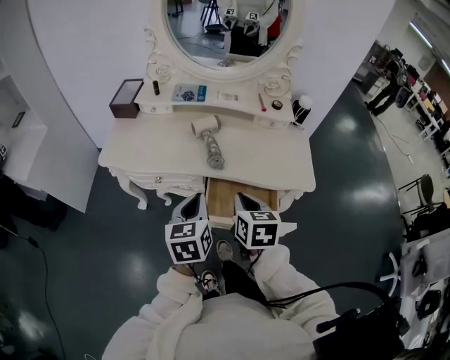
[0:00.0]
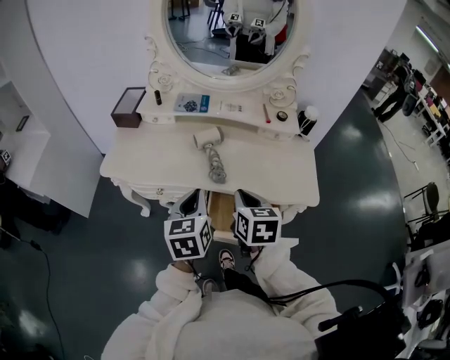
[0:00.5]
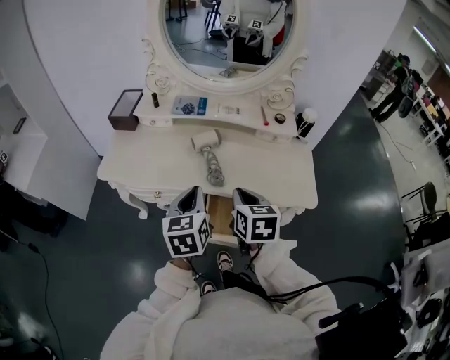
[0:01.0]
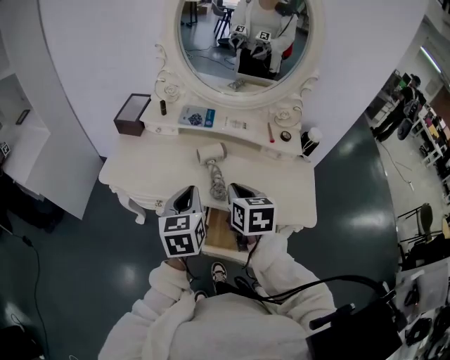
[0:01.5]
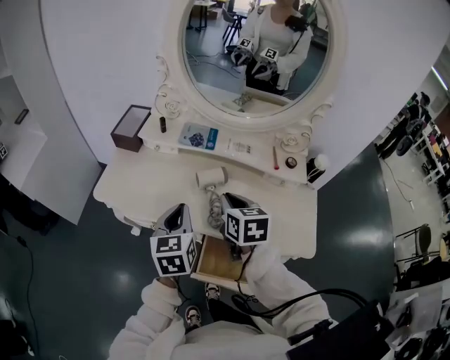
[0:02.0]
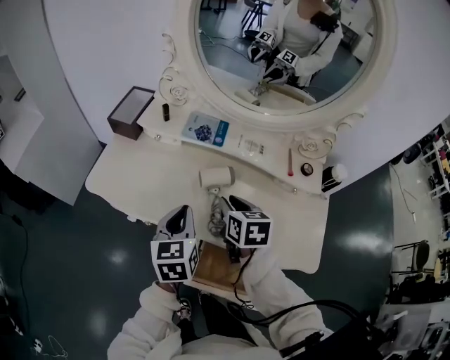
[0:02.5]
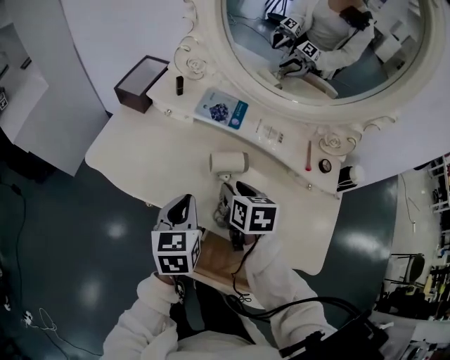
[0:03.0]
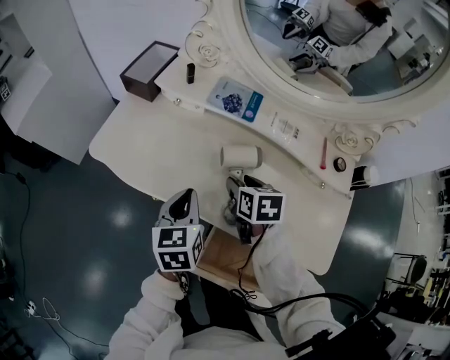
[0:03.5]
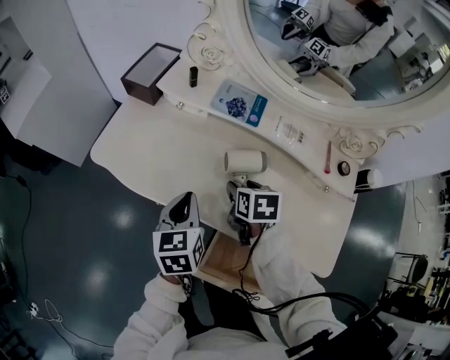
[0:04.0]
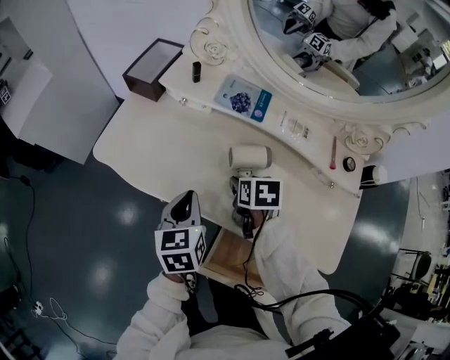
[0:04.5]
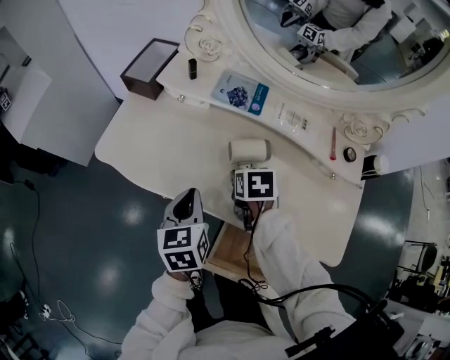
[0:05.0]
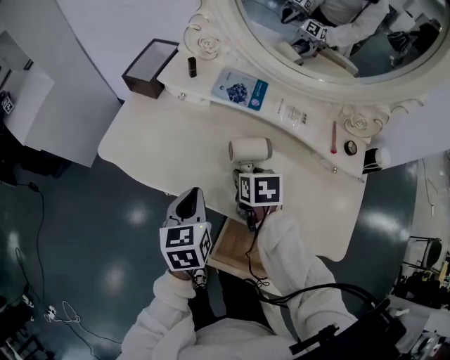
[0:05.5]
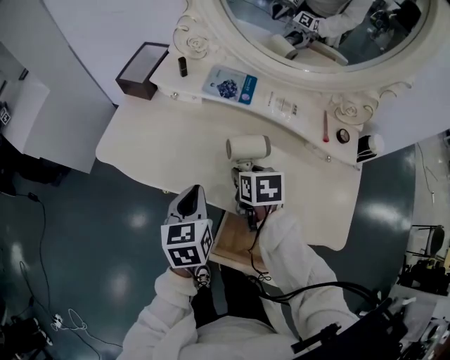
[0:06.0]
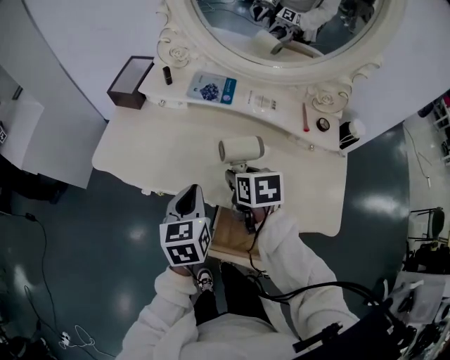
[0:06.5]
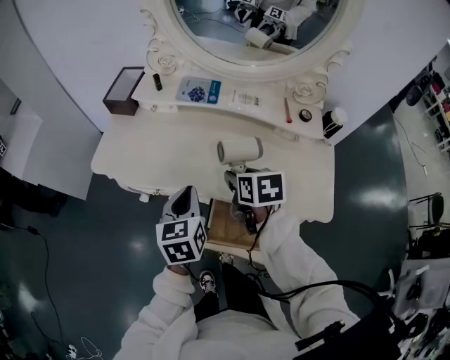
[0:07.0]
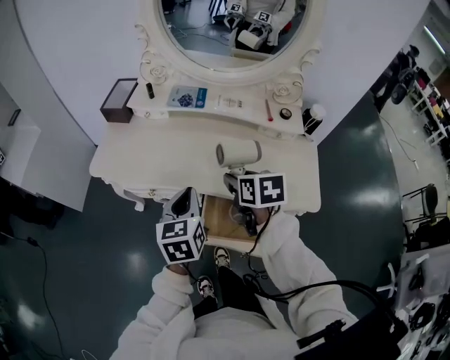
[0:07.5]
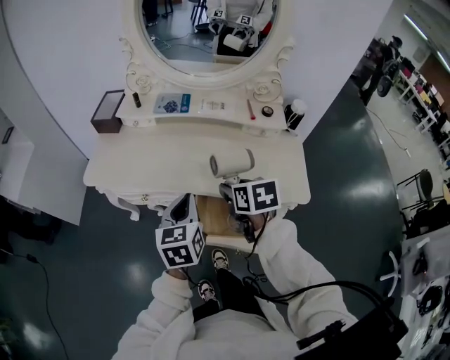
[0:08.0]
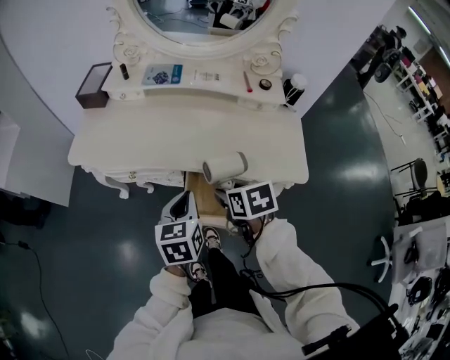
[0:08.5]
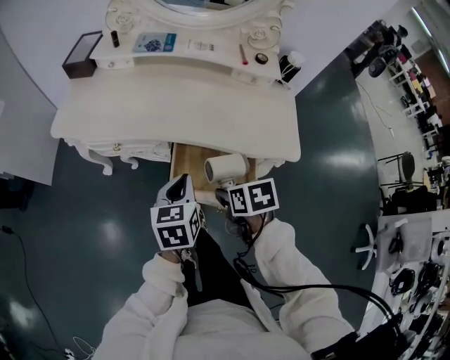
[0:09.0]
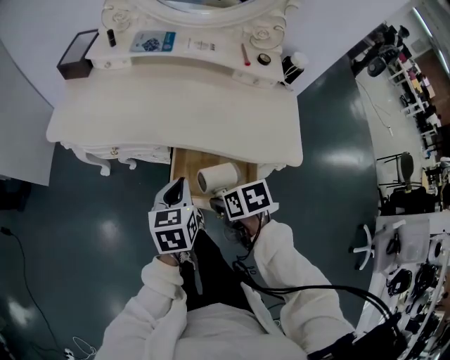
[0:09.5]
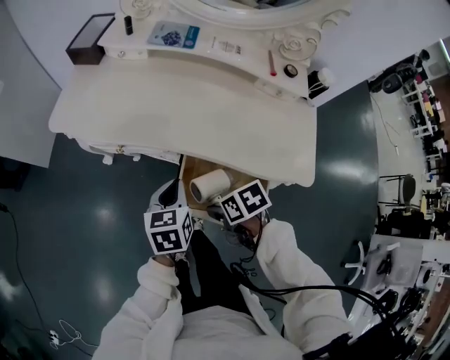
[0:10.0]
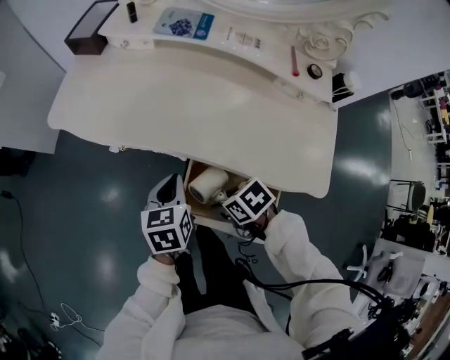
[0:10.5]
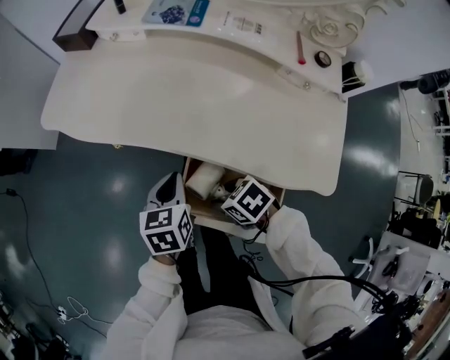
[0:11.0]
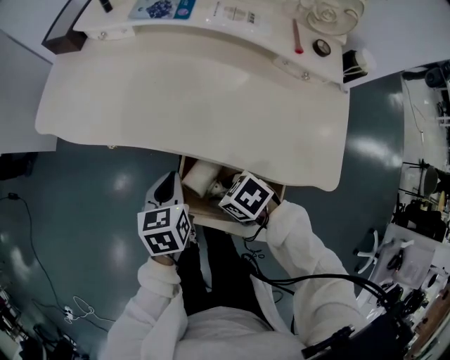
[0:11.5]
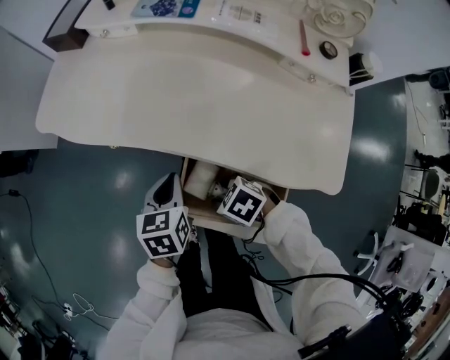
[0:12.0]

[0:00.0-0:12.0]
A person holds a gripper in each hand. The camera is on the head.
0:00.0 to 0:02.0: Both grippers travel together forward, about 20 cm.
0:02.0 to 0:04.0: The right gripper is displaced downward and forward by roughly 20 cm, turns by some 20 degrees, and opens its fingers. Meanwhile the left gripper heads downward and forward, covering some 10 cm.
0:04.0 to 0:06.0: There are only small adjustments of the grippers.
0:06.0 to 0:08.0: The right gripper is displaced backward and upward by approximately 20 cm, while the left gripper moves backward, upward and to the right, approximately 15 cm.
0:08.0 to 0:10.0: The grippers both shift downward by about 15 cm. The right gripper swivels roughly 40 degrees.
0:10.0 to 0:12.0: The grippers both shift downward by about 5 cm. The right gripper swivels some 40 degrees.

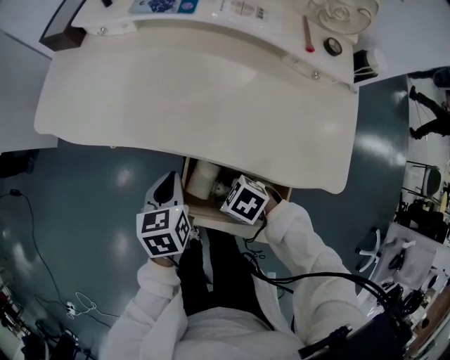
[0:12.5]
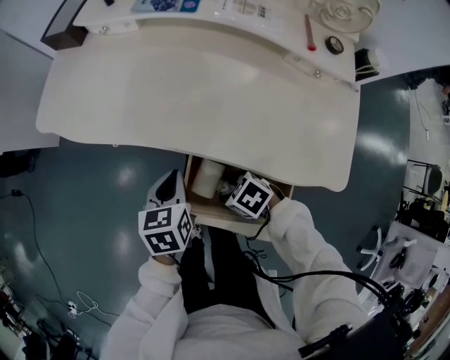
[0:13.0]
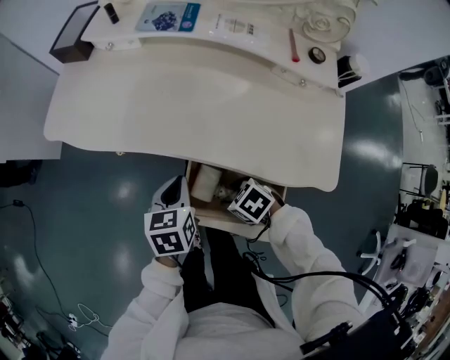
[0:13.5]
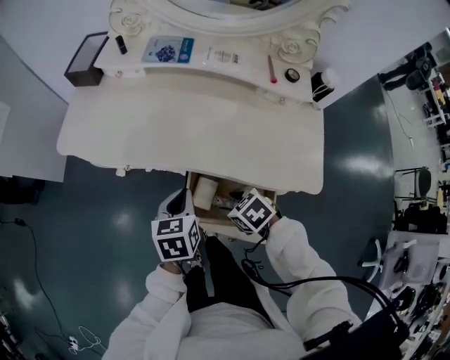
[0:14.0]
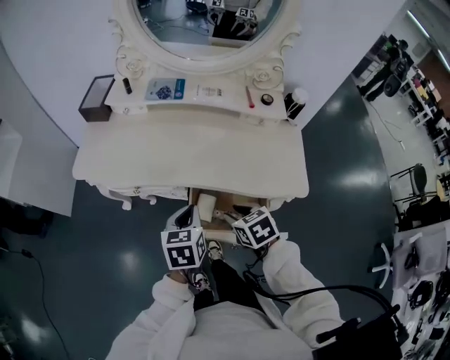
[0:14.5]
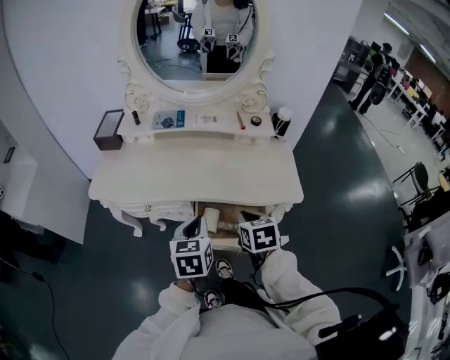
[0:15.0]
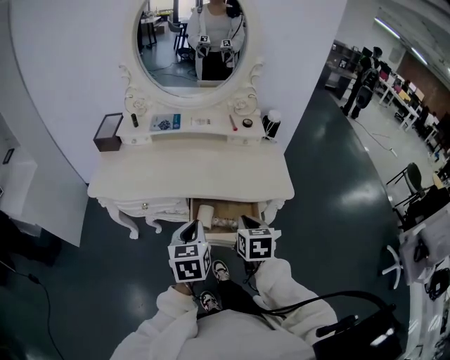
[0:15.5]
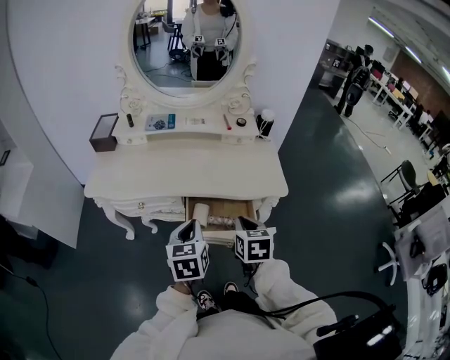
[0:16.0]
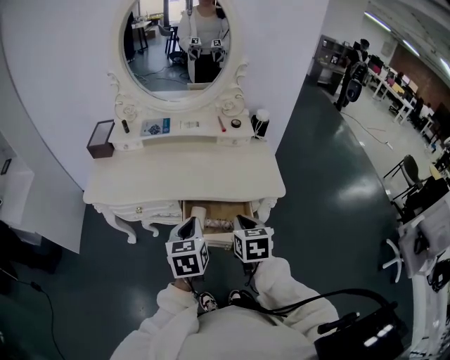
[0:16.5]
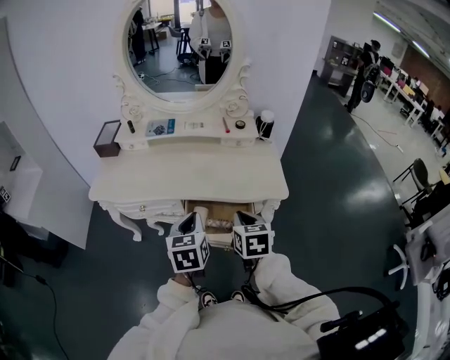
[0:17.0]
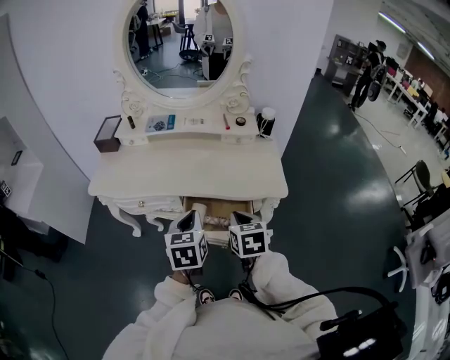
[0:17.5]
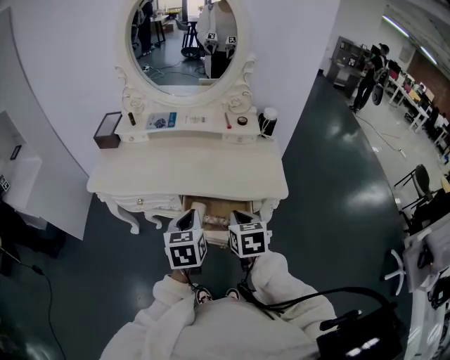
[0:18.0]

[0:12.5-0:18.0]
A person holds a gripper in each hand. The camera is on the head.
0:12.5 to 0:14.5: Both grippers travel together upward, about 15 cm. The right gripper turns by approximately 50 degrees.
0:14.5 to 0:16.0: The left gripper goes roughly 10 cm backward and upward, while the right gripper moves upward and backward, about 15 cm, turns by roughly 40 degrees, and closes its fingers.
0:16.0 to 0:18.0: The grippers move only a little.

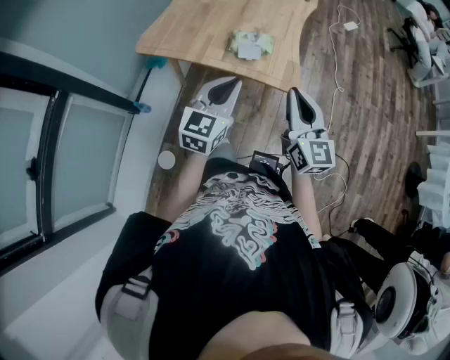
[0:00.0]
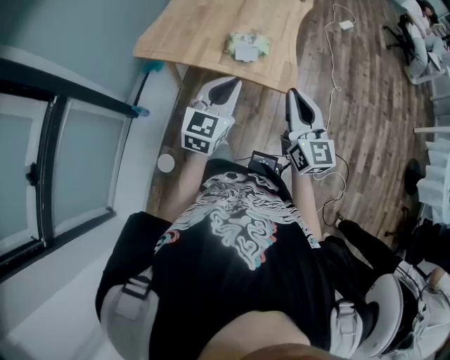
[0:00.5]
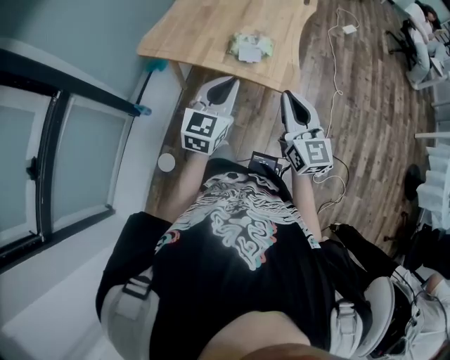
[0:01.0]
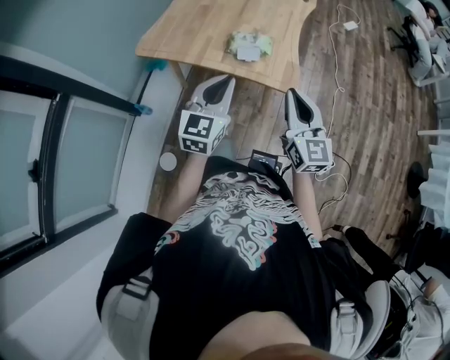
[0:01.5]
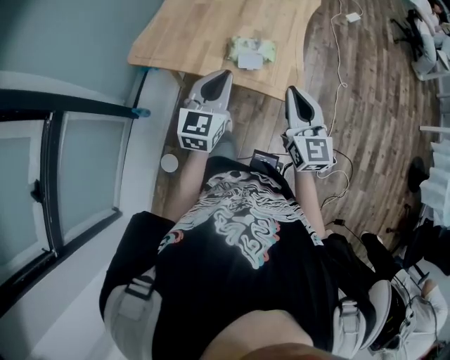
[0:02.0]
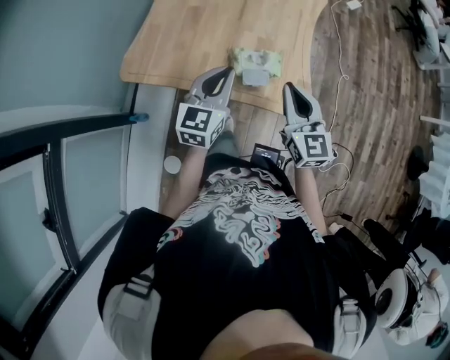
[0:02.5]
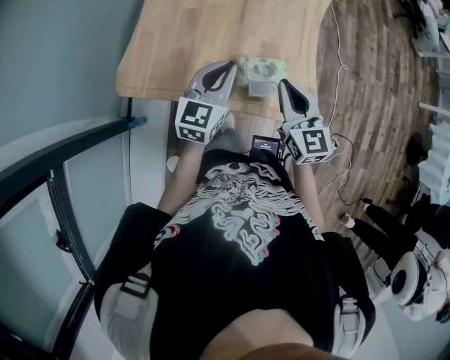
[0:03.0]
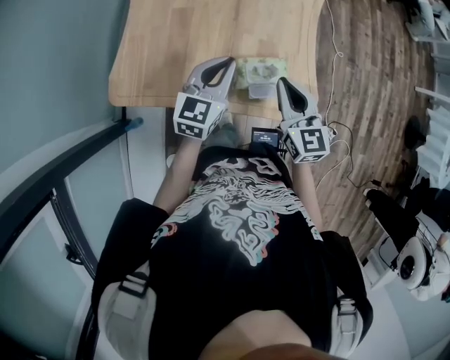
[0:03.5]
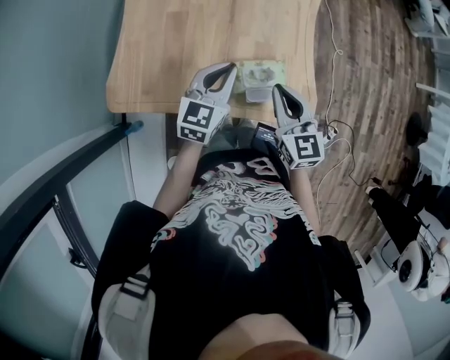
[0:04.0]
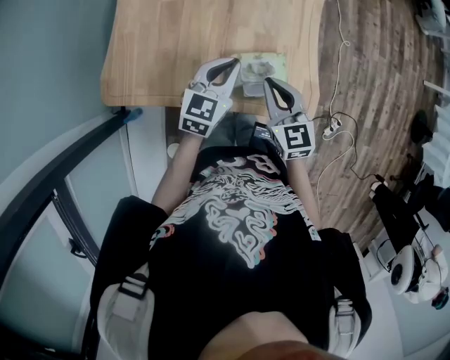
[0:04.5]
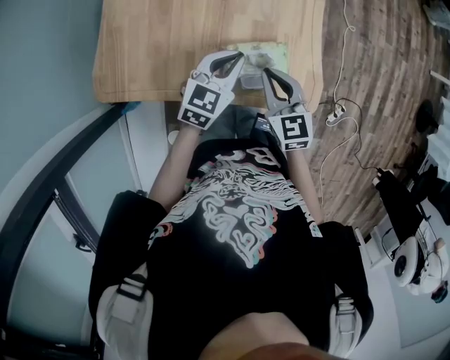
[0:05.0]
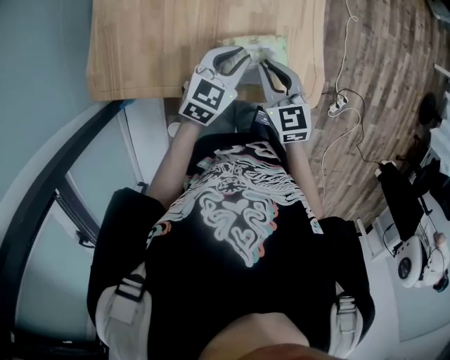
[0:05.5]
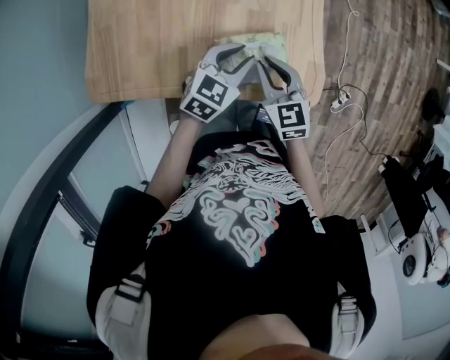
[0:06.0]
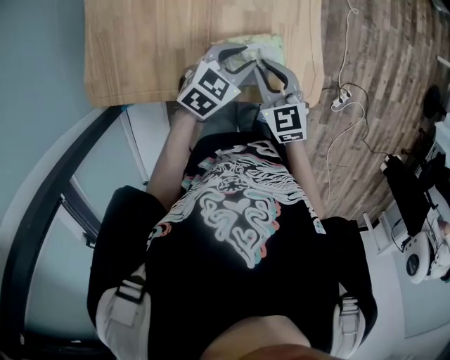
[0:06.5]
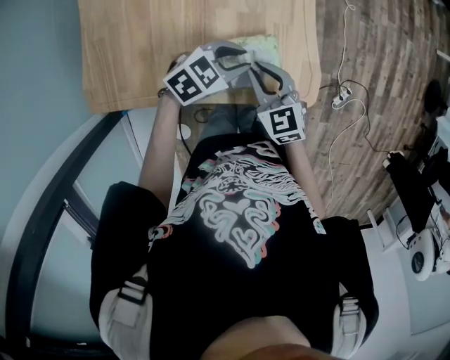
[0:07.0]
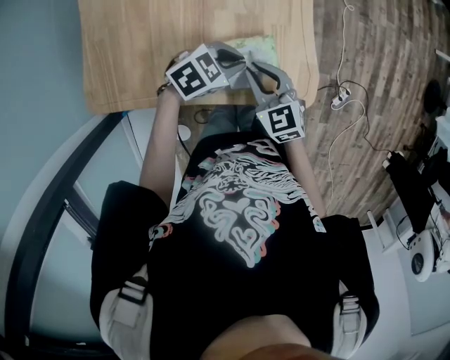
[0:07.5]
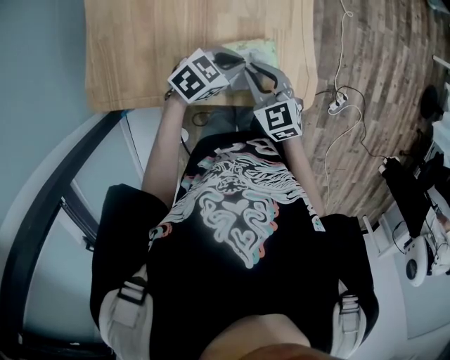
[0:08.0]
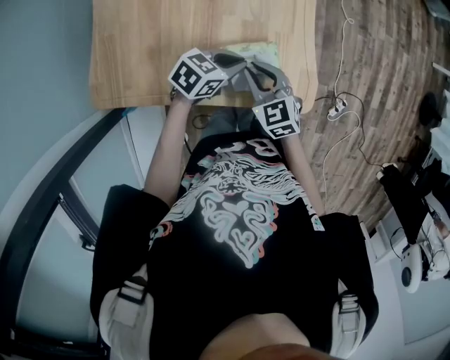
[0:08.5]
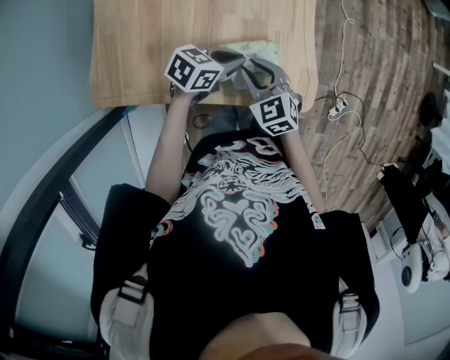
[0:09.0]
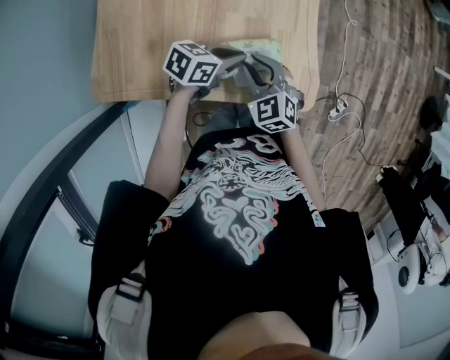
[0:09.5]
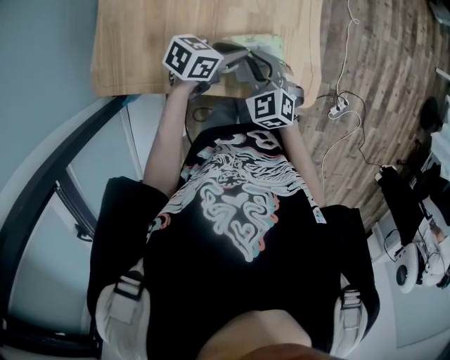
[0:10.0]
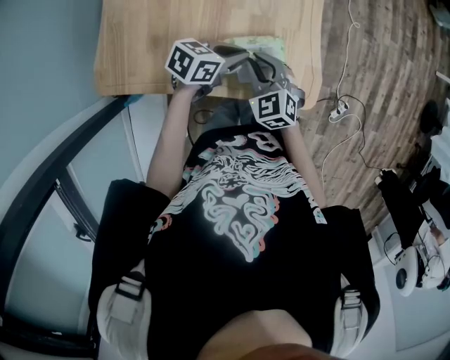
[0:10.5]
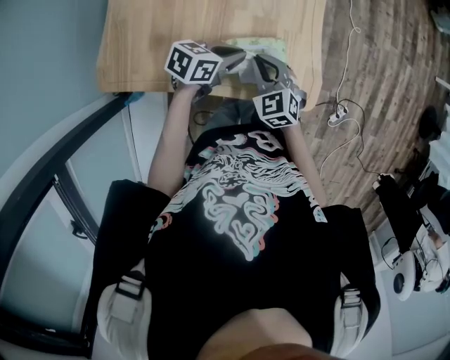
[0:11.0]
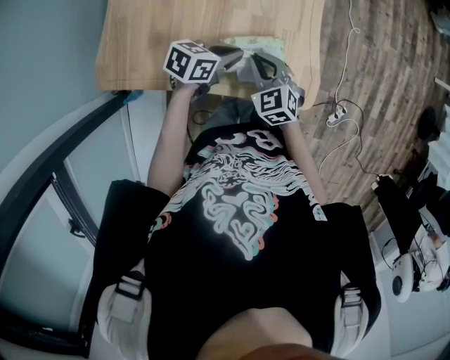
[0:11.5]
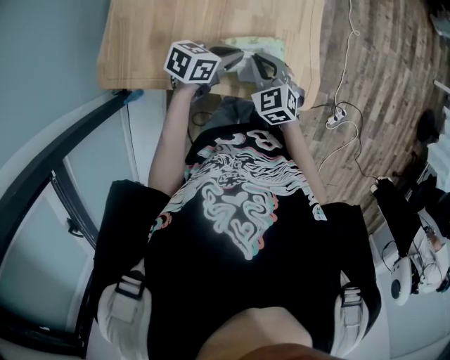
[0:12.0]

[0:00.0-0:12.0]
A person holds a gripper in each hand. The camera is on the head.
0:00.0 to 0:02.0: Both grippers travel together forward, approximately 10 cm.
0:02.0 to 0:04.0: The right gripper travels forward, to the left and downward by roughly 25 cm. The left gripper moves forward and downward, some 25 cm, and turns by some 20 degrees.
0:04.0 to 0:06.0: The left gripper moves downward and to the right, about 15 cm, and changes its angle by about 30 degrees, while the right gripper moves downward, roughly 10 cm.
0:06.0 to 0:08.0: The left gripper swivels some 20 degrees.
0:08.0 to 0:10.0: The left gripper swivels some 30 degrees.
0:10.0 to 0:12.0: There are only small adjustments of the grippers.
